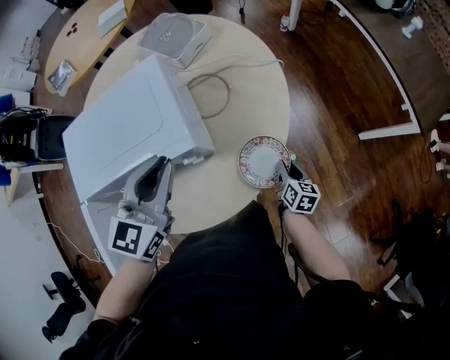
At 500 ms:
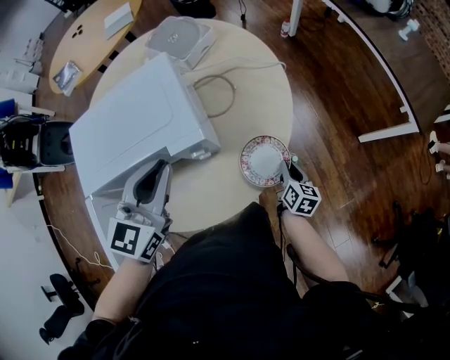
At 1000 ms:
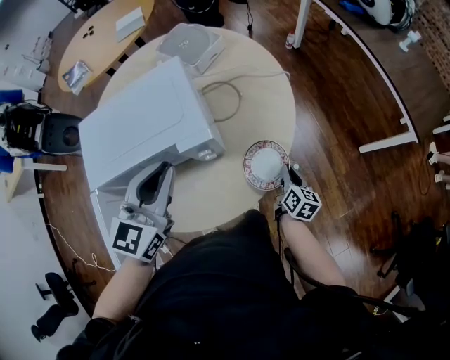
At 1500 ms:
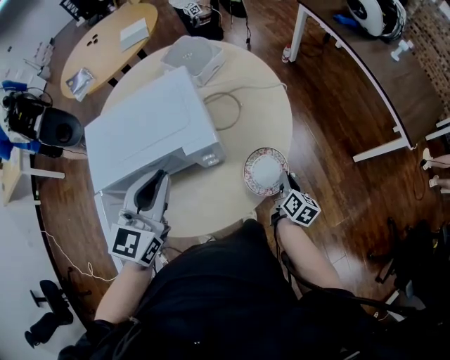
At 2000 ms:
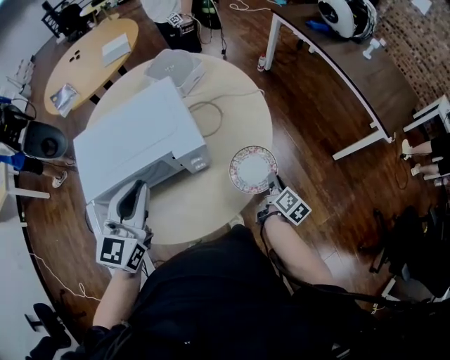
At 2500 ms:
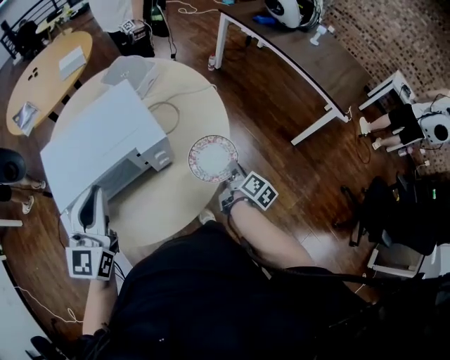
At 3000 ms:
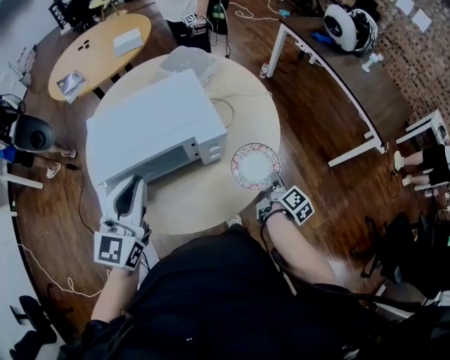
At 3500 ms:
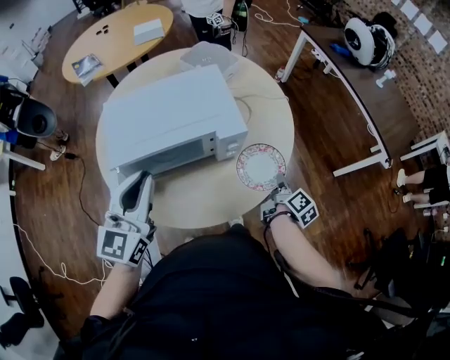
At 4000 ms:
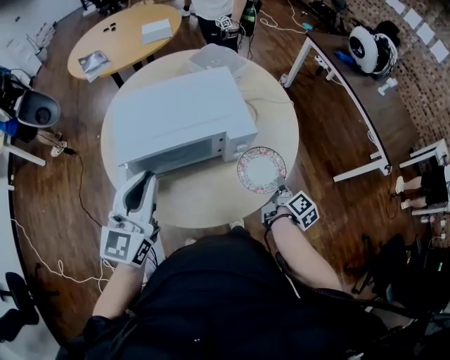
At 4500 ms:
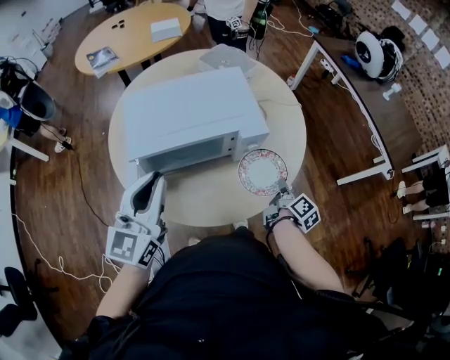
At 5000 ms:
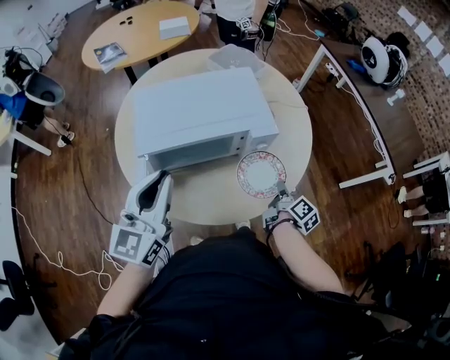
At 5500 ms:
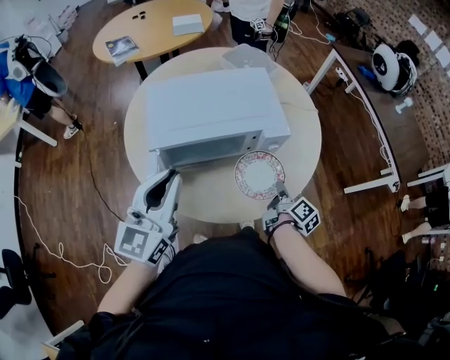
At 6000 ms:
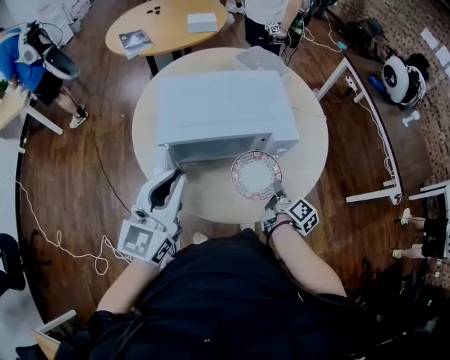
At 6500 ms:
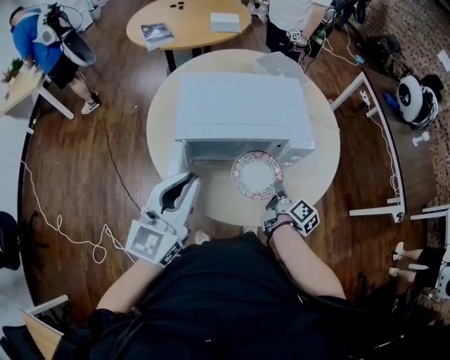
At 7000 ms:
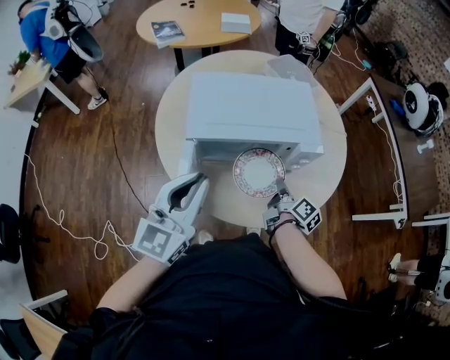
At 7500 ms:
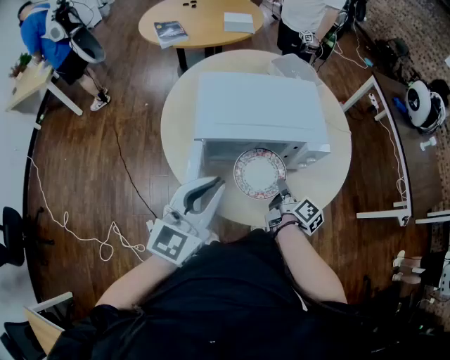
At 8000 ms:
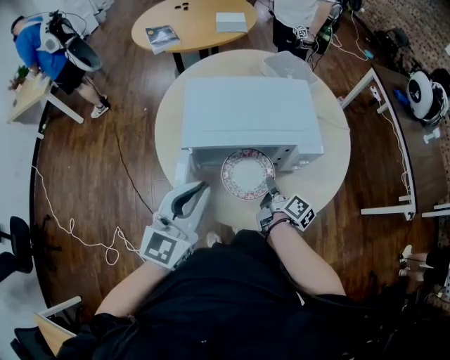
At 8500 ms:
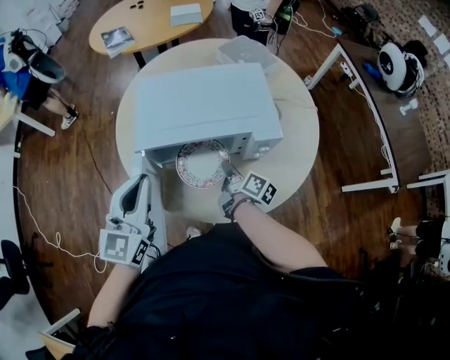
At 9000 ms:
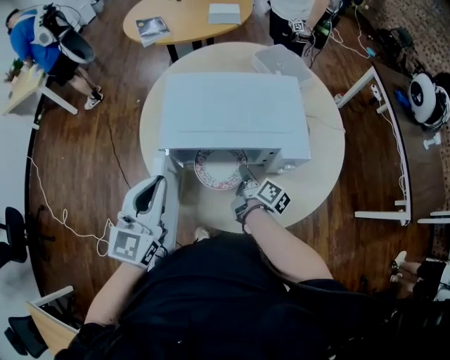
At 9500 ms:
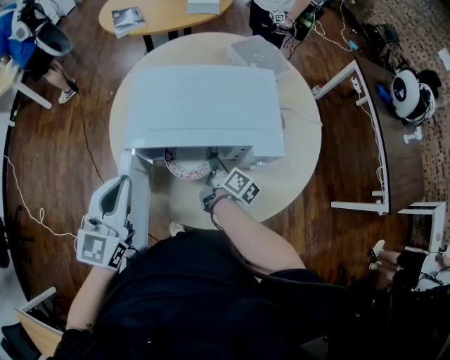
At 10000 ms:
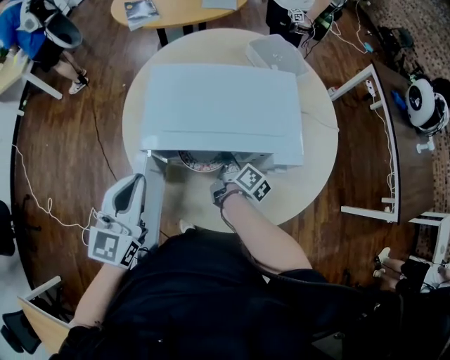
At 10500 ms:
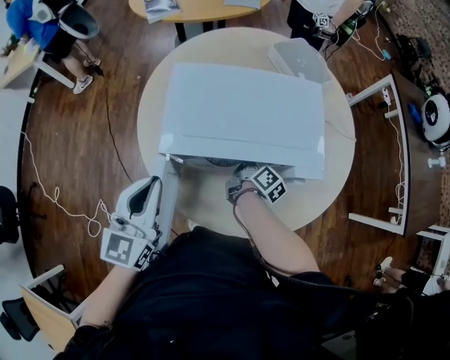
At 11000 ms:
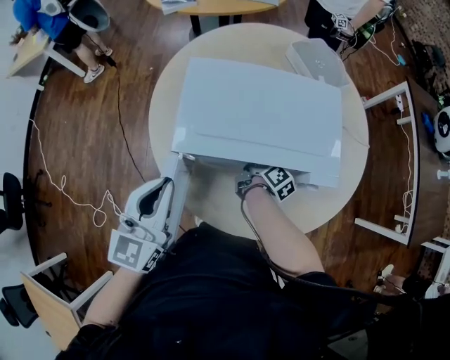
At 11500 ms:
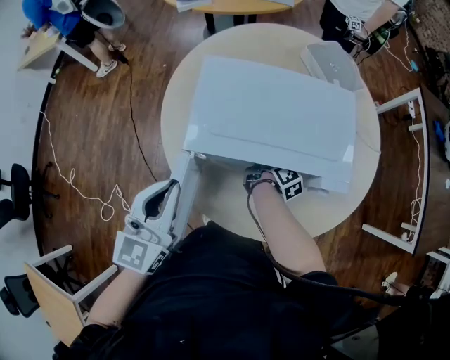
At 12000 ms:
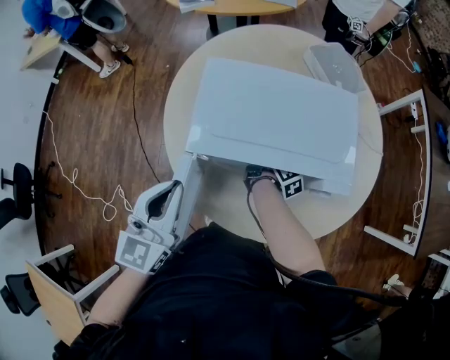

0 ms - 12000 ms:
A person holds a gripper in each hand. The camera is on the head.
0 ms - 2000 ms: The left gripper travels to the left and backward by about 10 cm, while the right gripper shifts approximately 10 cm upward, swivels roughly 30 degrees, and closes.
2000 ms - 4000 ms: The left gripper travels to the left and backward by about 10 cm, while the right gripper is displaced to the left by roughly 5 cm.
4000 ms - 6000 ms: The right gripper moves to the left, about 15 cm.
6000 ms - 8000 ms: The right gripper goes about 10 cm to the left.
8000 ms - 10000 ms: The left gripper is displaced to the left by some 5 cm. The right gripper is displaced forward by about 10 cm.
10000 ms - 12000 ms: The right gripper moves forward, roughly 5 cm.

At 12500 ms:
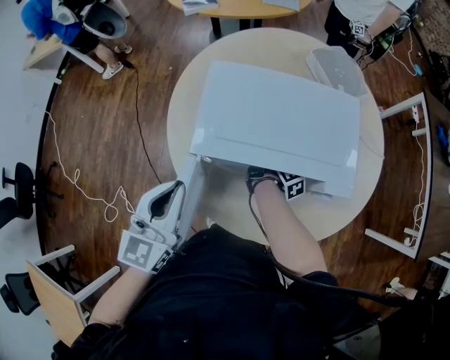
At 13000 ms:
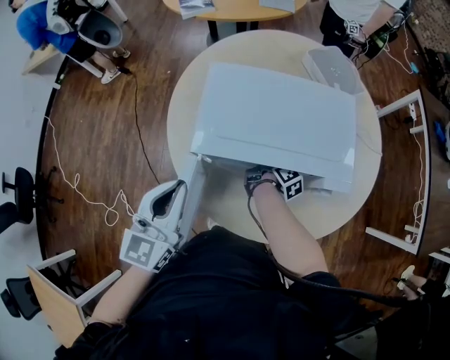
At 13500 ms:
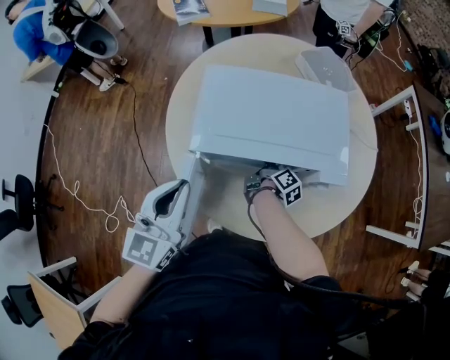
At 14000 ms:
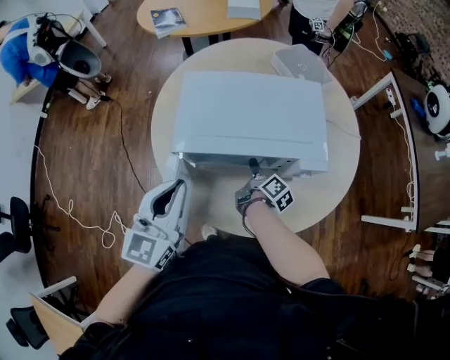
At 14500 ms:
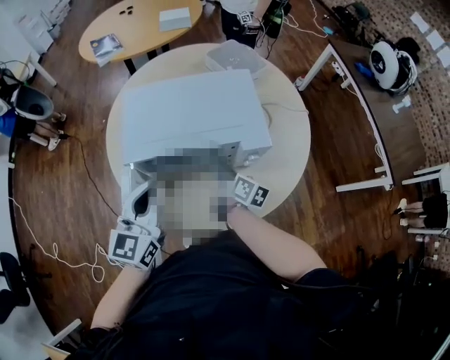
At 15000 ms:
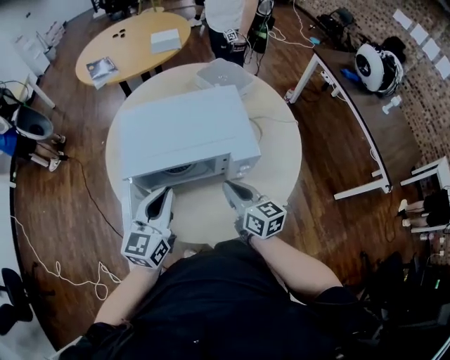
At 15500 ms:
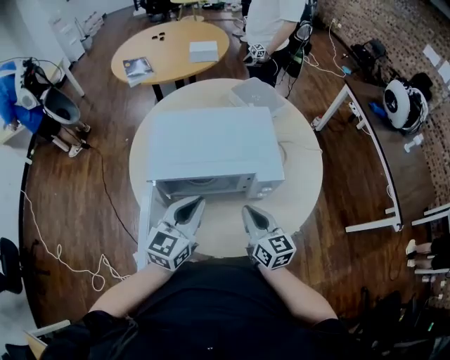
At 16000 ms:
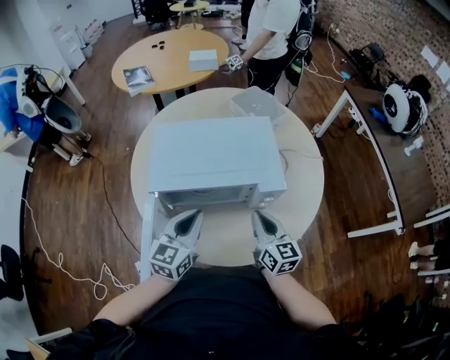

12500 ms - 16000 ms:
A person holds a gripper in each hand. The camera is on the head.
12500 ms - 14500 ms: The right gripper moves backward and upward, some 15 cm, swivels about 30 degrees, and opens. The left gripper travels to the right by approximately 10 cm.
14500 ms - 16000 ms: The left gripper travels downward and to the right by approximately 10 cm. Meanwhile the right gripper moves upward, to the right and backward, approximately 10 cm, rotates around the line of its fingers by approximately 40 degrees, counterclockwise from behind, and closes.

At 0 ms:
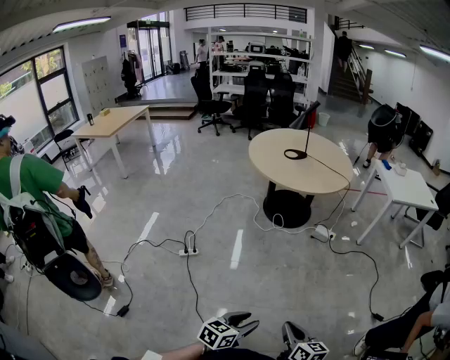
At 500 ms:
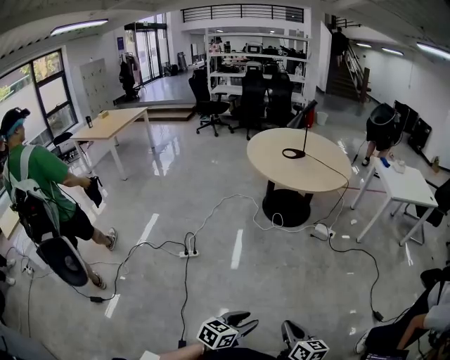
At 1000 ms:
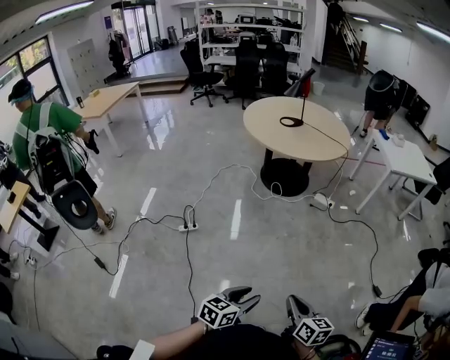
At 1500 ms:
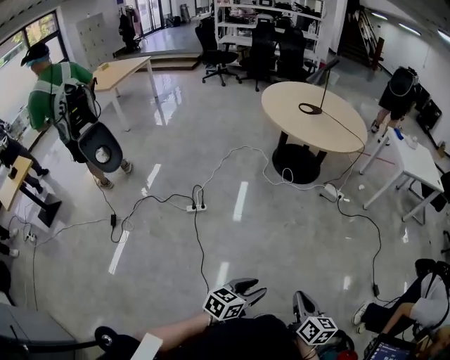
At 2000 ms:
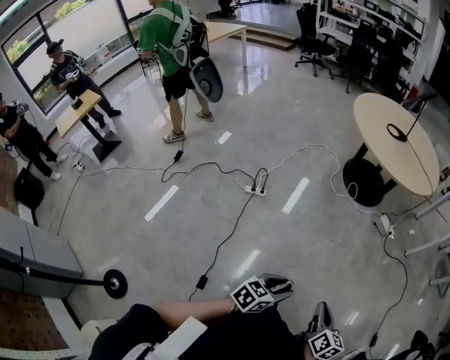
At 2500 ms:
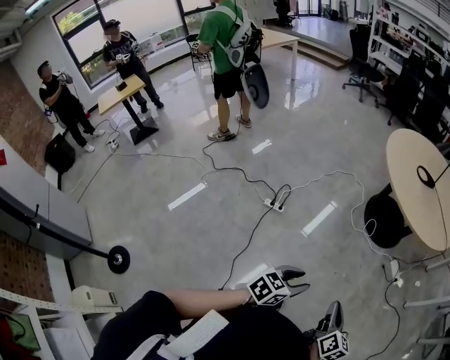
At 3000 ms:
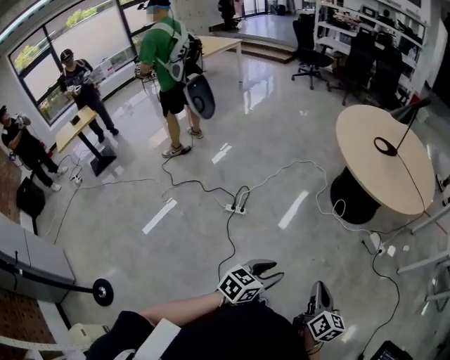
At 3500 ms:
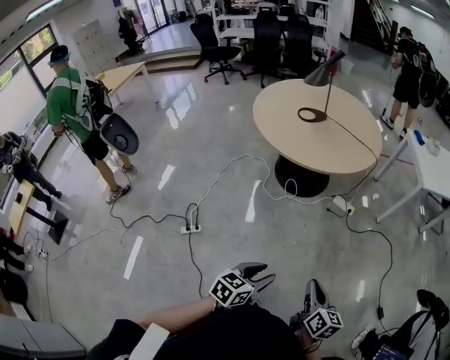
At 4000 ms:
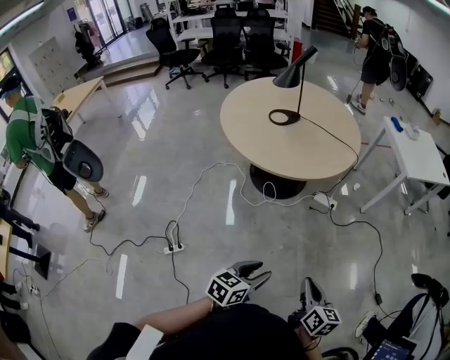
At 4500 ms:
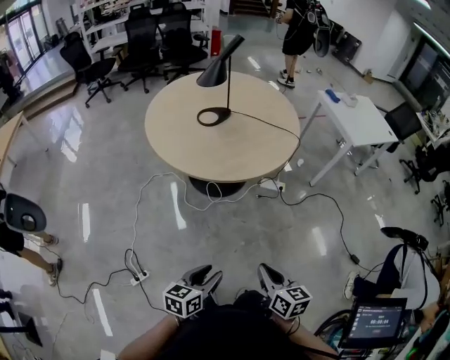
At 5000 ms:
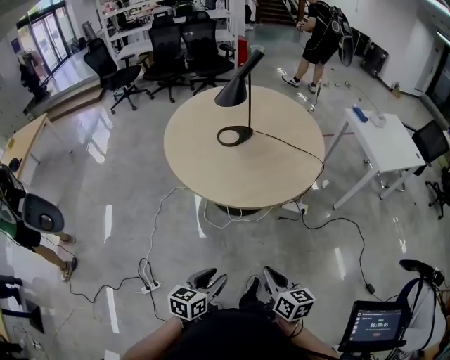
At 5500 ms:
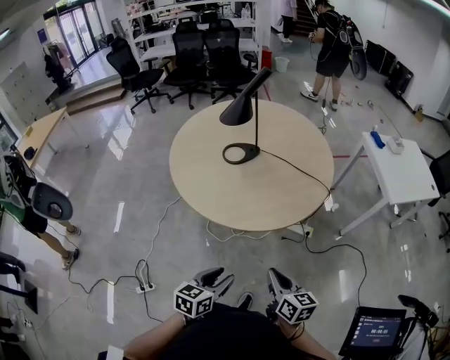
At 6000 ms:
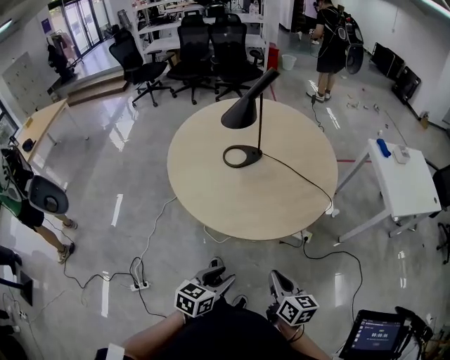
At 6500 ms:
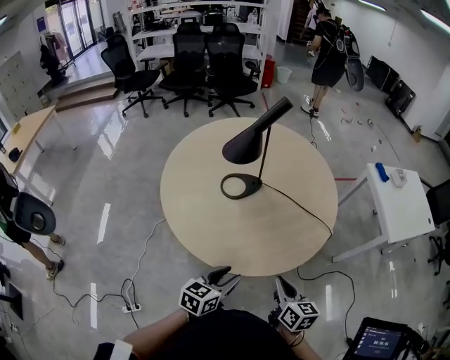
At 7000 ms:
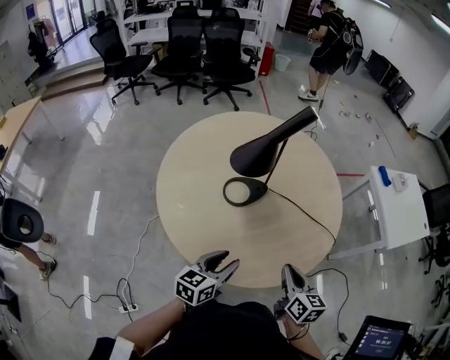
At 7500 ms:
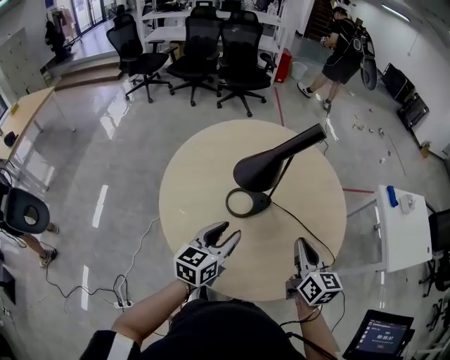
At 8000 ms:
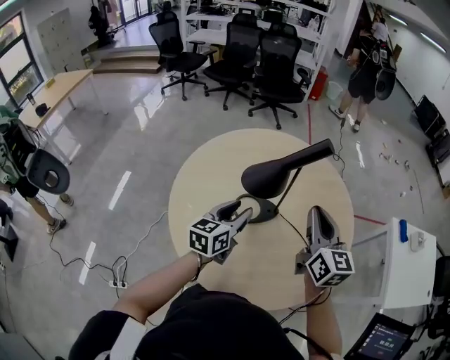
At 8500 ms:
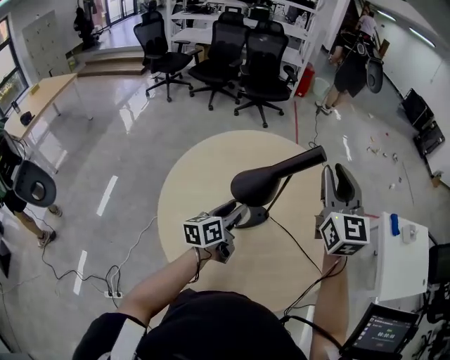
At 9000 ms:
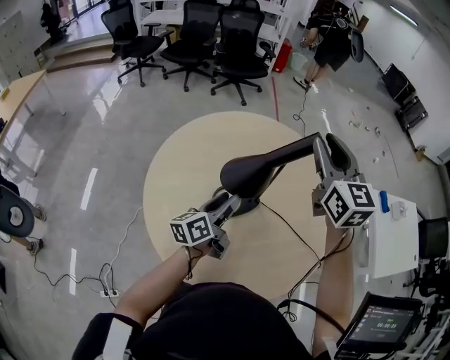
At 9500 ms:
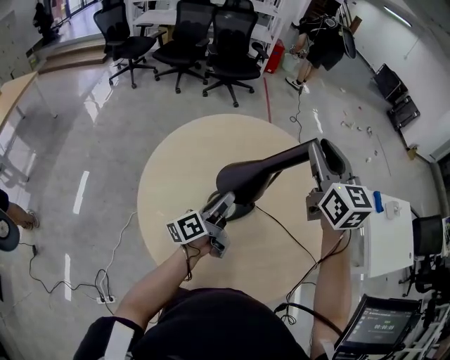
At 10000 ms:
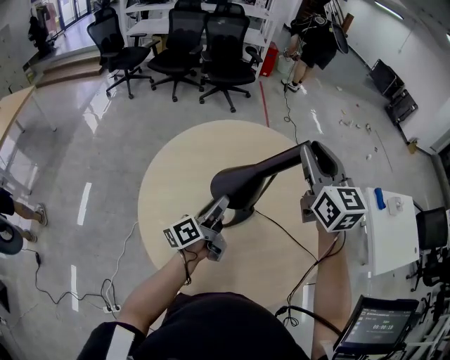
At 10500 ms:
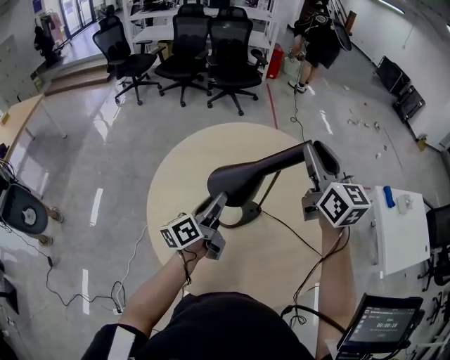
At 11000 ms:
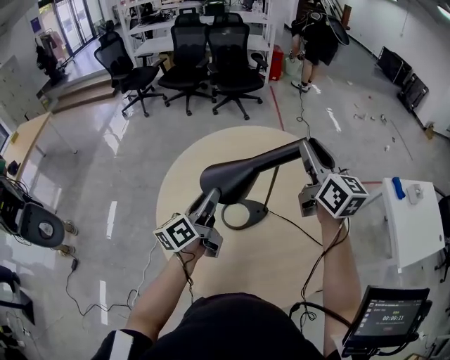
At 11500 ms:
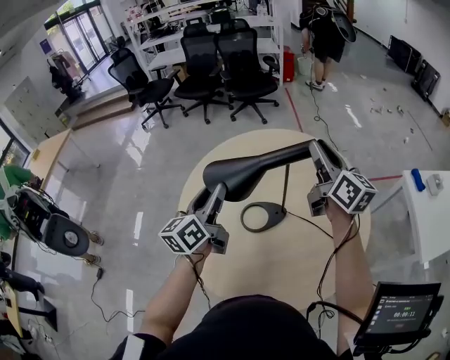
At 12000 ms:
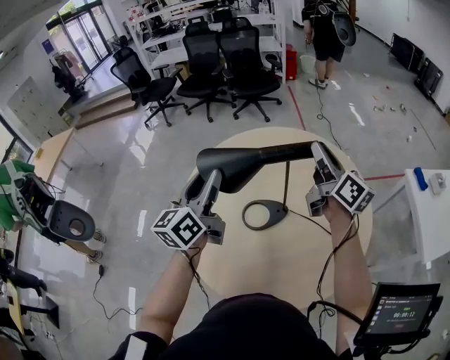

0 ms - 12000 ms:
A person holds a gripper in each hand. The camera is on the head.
0 ms - 2000 ms: The left gripper heads to the left, covering approximately 5 cm, while the right gripper changes place by about 5 cm.
2000 ms - 4000 ms: The right gripper moves roughly 30 cm, while the left gripper changes place by roughly 35 cm.
4000 ms - 6000 ms: Both grippers move forward, about 30 cm.
6000 ms - 8000 ms: The two grippers travel together, forward, some 50 cm. The right gripper goes some 20 cm upward, and swivels about 30 degrees. The left gripper rotates about 30 degrees.
8000 ms - 10000 ms: The left gripper moves forward, about 5 cm, and twists some 40 degrees counterclockwise, seen from behind, while the right gripper shifts roughly 15 cm forward and upward, and opens.
10000 ms - 12000 ms: The left gripper is displaced upward and to the left by approximately 20 cm, and rotates around the line of its fingers by approximately 40 degrees, clockwise from behind. The right gripper is displaced downward by about 5 cm, and rotates around the line of its fingers by some 40 degrees, clockwise from behind.
